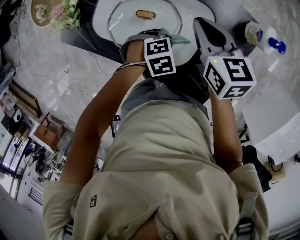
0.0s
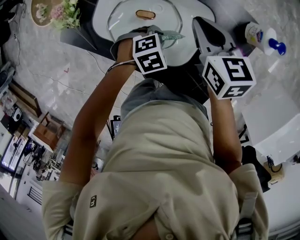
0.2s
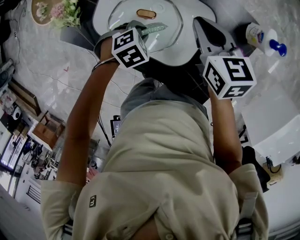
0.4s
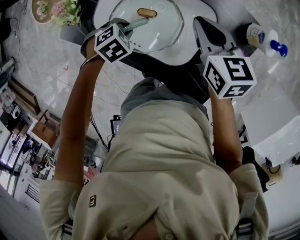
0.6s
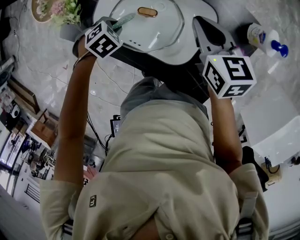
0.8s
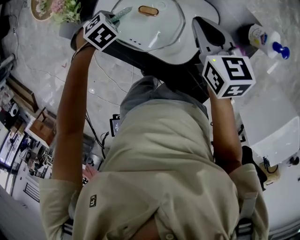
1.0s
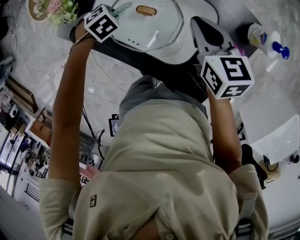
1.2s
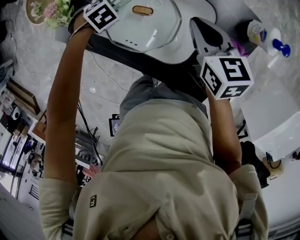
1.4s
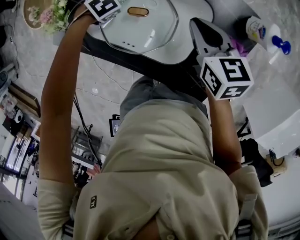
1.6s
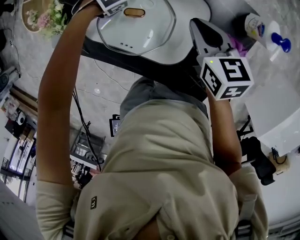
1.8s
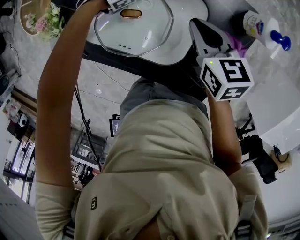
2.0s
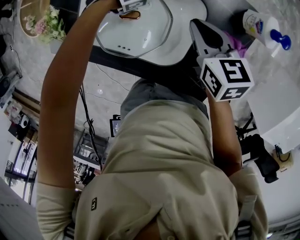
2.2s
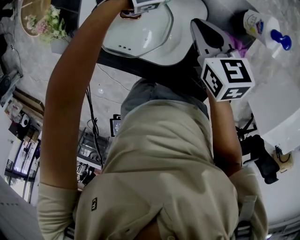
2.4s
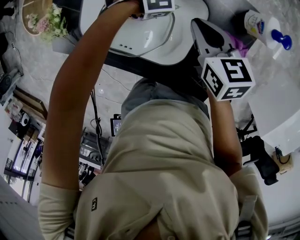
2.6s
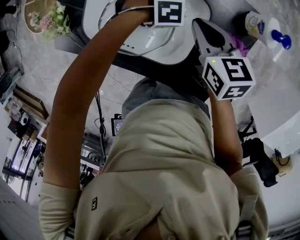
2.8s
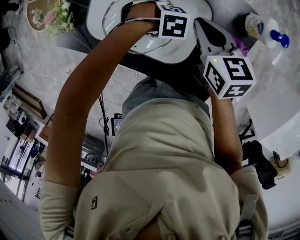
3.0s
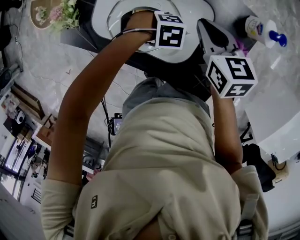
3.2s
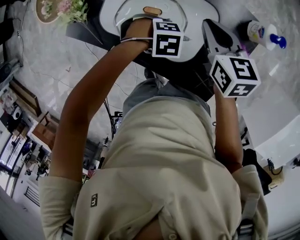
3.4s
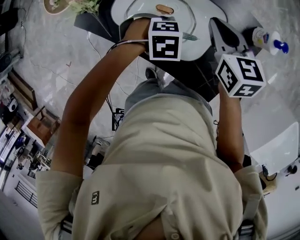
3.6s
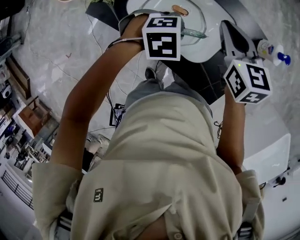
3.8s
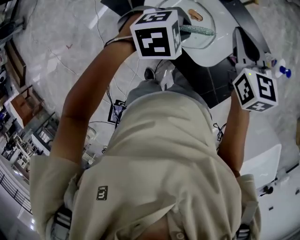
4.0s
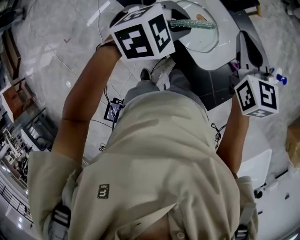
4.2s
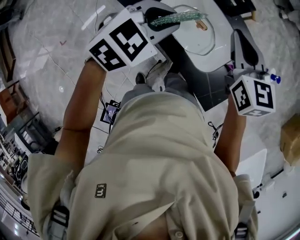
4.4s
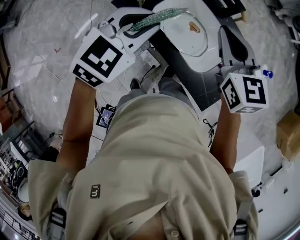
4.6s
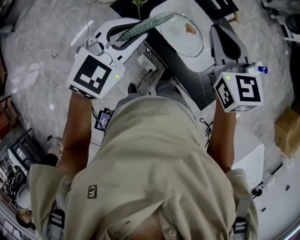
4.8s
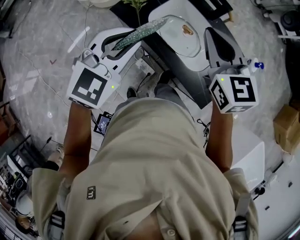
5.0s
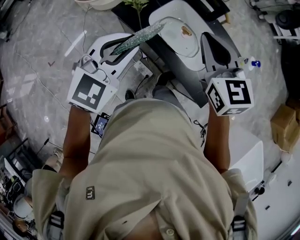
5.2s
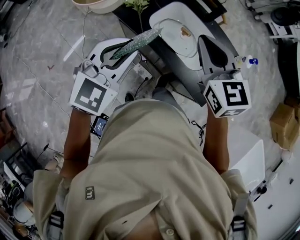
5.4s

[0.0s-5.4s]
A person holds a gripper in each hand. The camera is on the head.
0.0s to 1.4s: The left gripper shifts by roughly 25 cm.
1.4s to 2.8s: The left gripper shifts by approximately 20 cm, and turns by approximately 30 degrees.
2.8s to 4.0s: The left gripper heads upward, covering about 20 cm, and changes its angle by about 40 degrees; the right gripper shifts approximately 15 cm upward, and swivels about 20 degrees.
4.0s to 5.4s: The left gripper changes place by approximately 30 cm, and angles its fingers upward, by about 40 degrees; the right gripper moves about 20 cm.

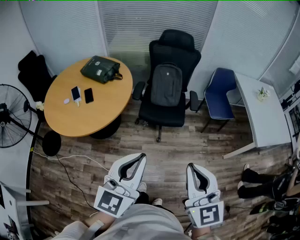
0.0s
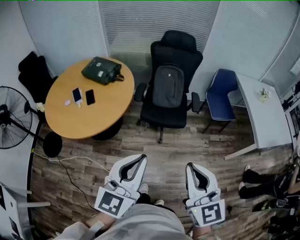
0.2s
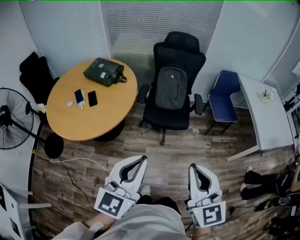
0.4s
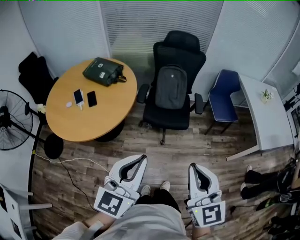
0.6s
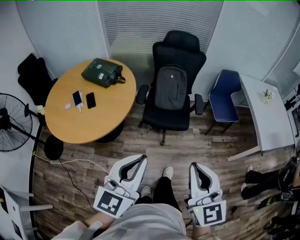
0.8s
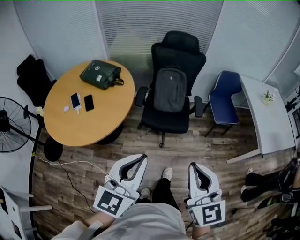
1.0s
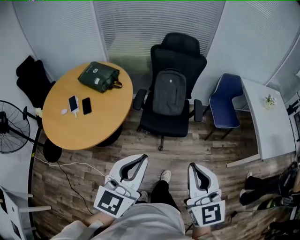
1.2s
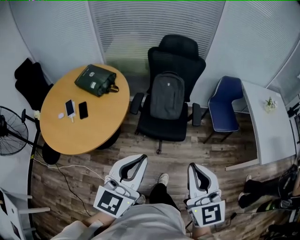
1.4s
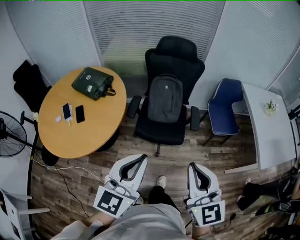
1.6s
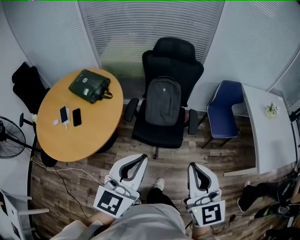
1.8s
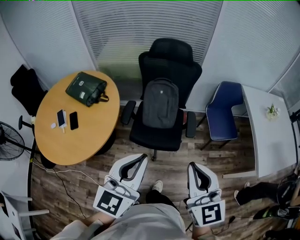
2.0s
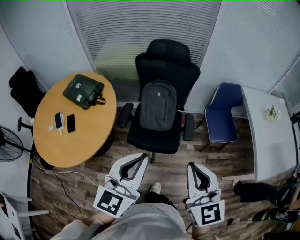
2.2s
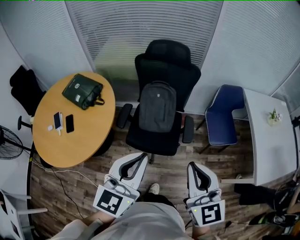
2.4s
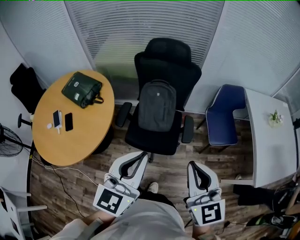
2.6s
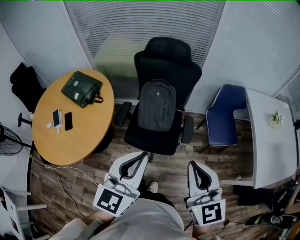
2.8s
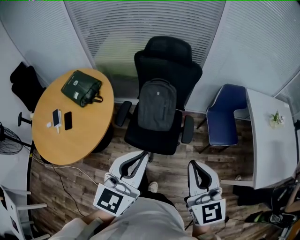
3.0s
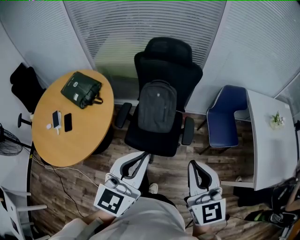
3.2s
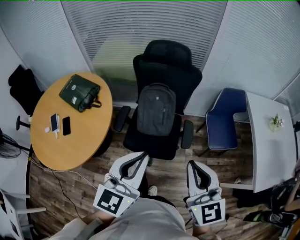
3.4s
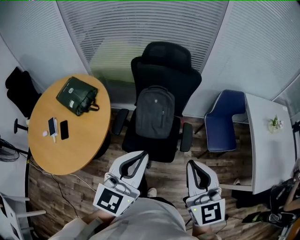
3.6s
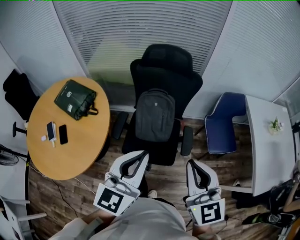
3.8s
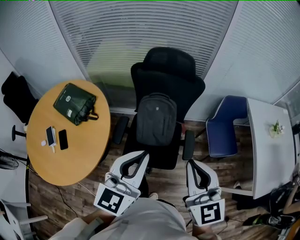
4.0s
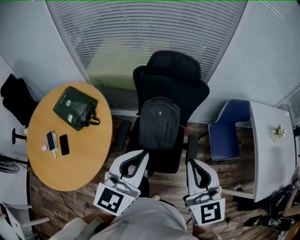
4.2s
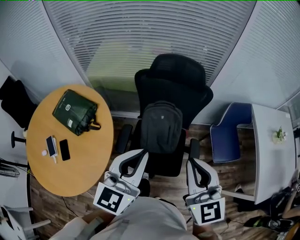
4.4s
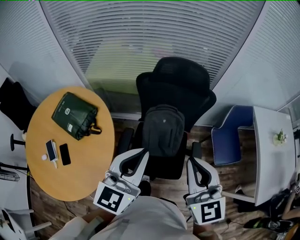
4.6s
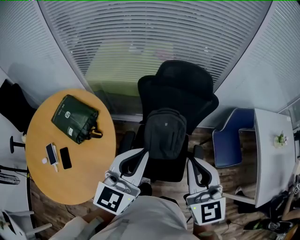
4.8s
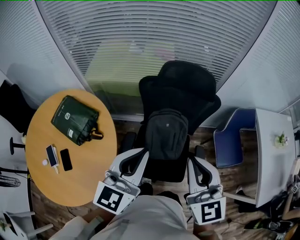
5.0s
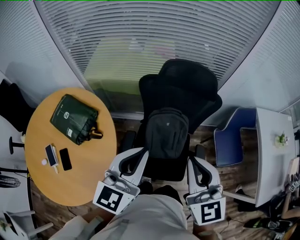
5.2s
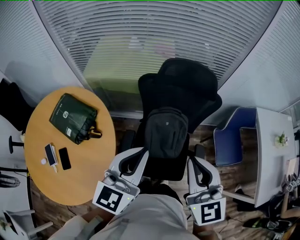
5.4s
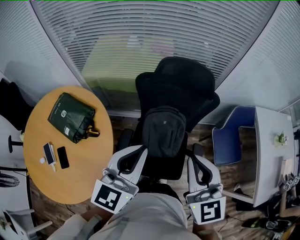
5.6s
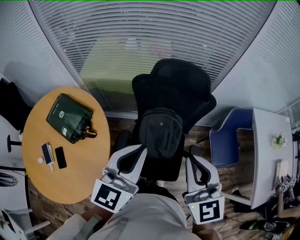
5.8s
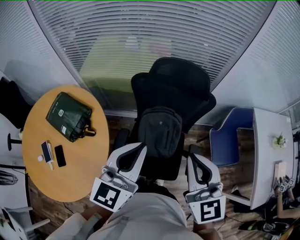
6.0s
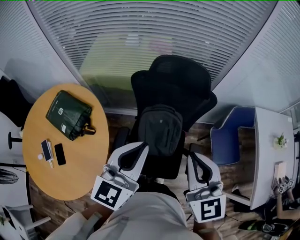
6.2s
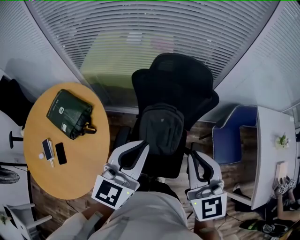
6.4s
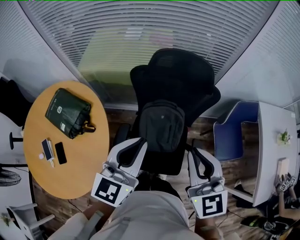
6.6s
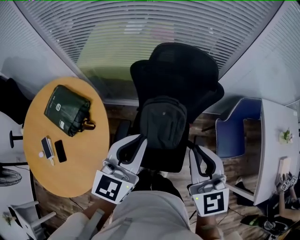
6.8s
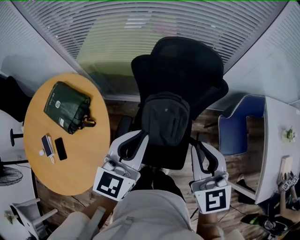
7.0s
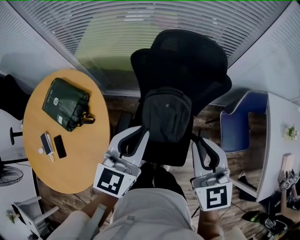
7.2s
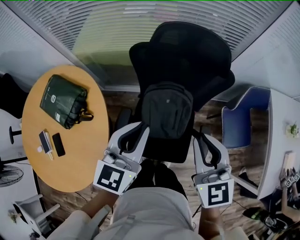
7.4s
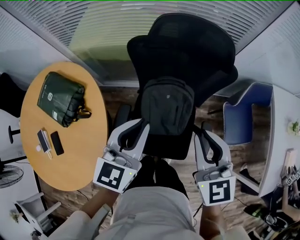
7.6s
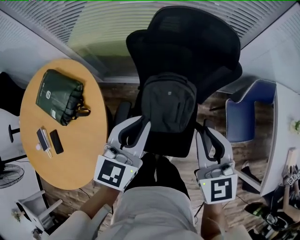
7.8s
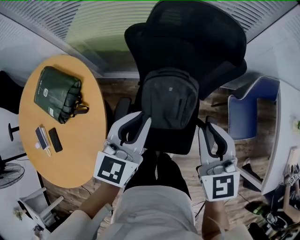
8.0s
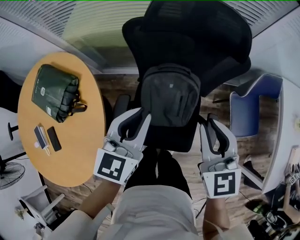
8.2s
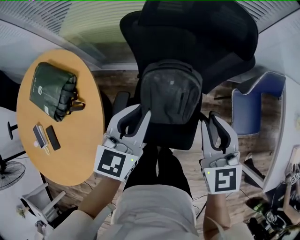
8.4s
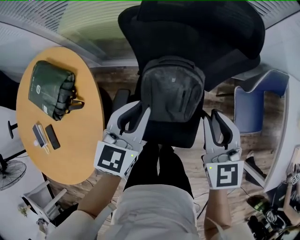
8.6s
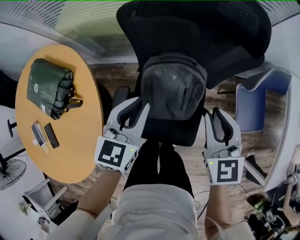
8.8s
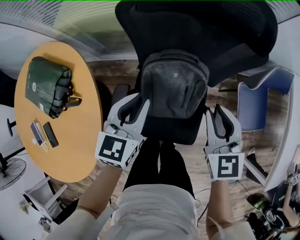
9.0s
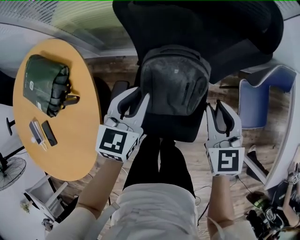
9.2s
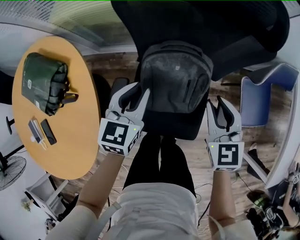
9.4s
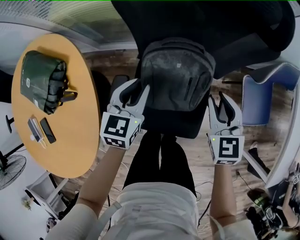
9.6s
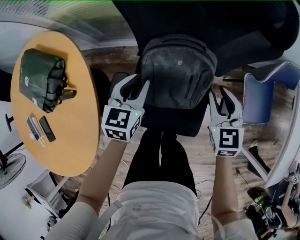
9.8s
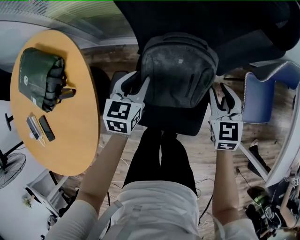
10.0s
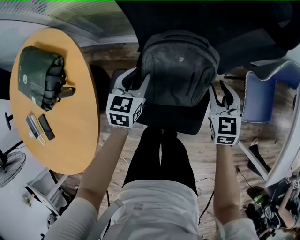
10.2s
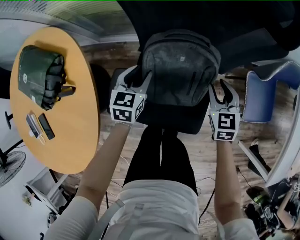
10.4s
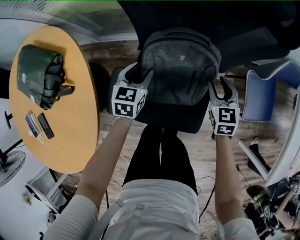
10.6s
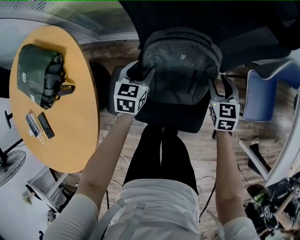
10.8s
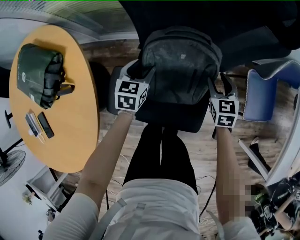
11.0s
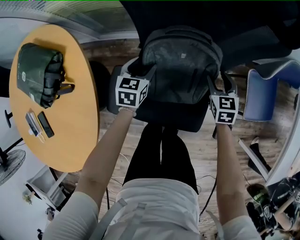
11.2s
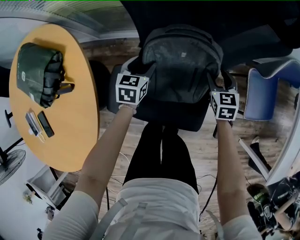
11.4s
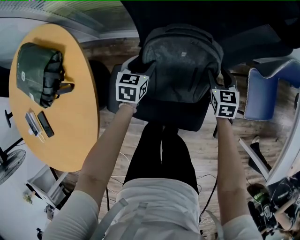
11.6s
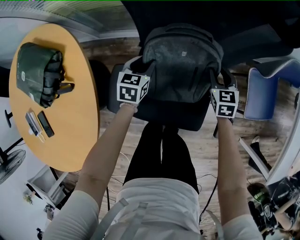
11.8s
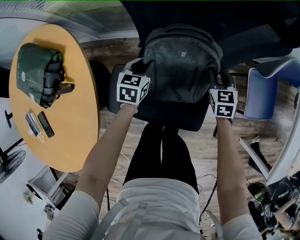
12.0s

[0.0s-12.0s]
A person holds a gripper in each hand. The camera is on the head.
0.0s to 1.6s: Both grippers move forward, roughly 20 cm.
1.6s to 3.0s: The grippers both shift forward and to the right by approximately 20 cm.
3.0s to 4.4s: Both grippers travel together forward and to the left, some 25 cm.
4.4s to 6.0s: Both grippers travel together forward, approximately 10 cm.
6.0s to 7.6s: Both grippers move downward and forward, some 15 cm.
7.6s to 9.0s: The right gripper moves downward and forward, some 15 cm. Meanwhile the left gripper shifts some 15 cm downward.
9.0s to 10.4s: Both grippers travel together downward, approximately 20 cm. The left gripper opens up.
10.4s to 12.0s: Both grippers move downward, approximately 5 cm.

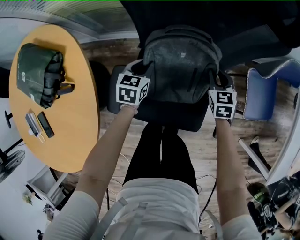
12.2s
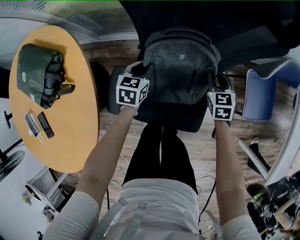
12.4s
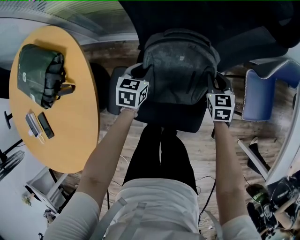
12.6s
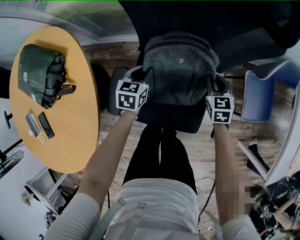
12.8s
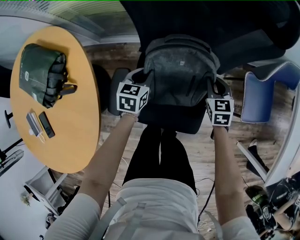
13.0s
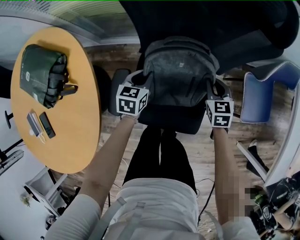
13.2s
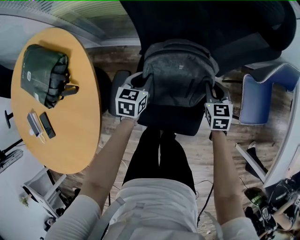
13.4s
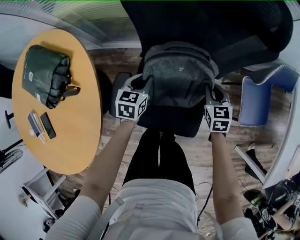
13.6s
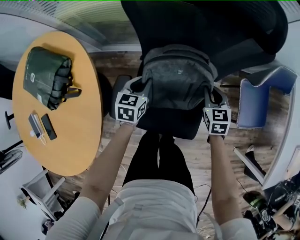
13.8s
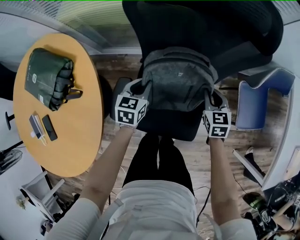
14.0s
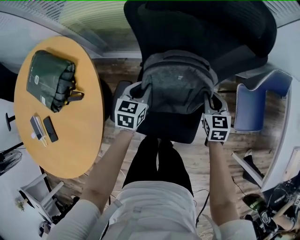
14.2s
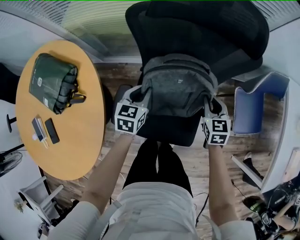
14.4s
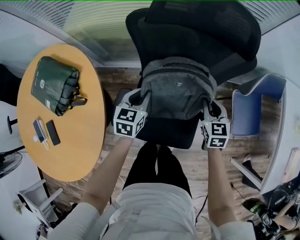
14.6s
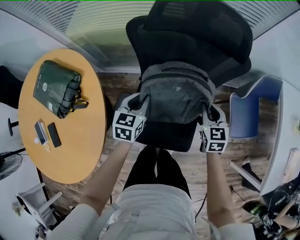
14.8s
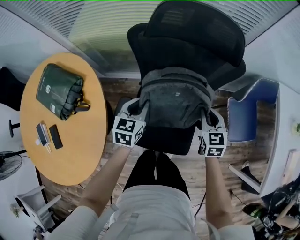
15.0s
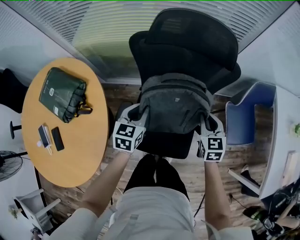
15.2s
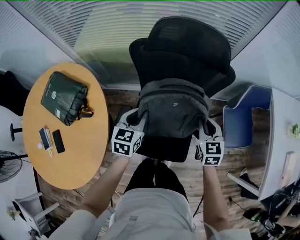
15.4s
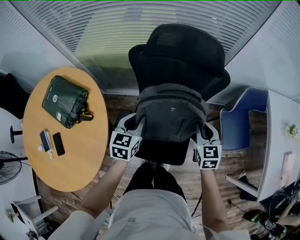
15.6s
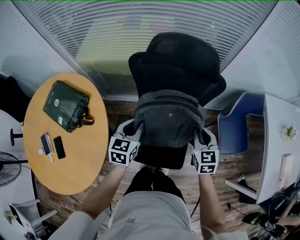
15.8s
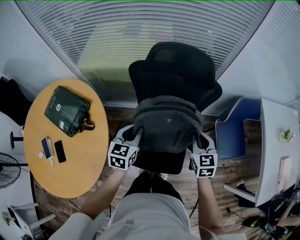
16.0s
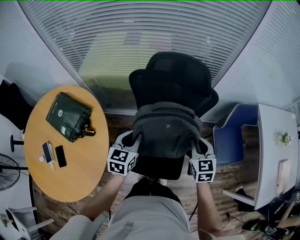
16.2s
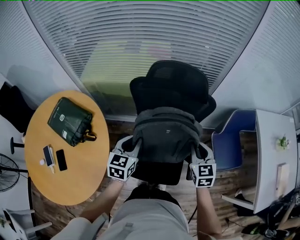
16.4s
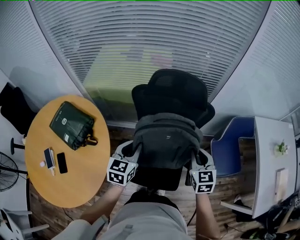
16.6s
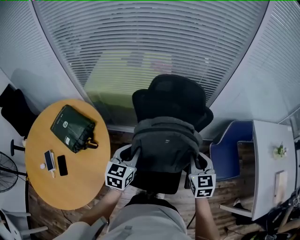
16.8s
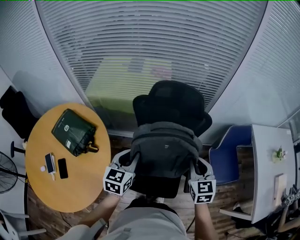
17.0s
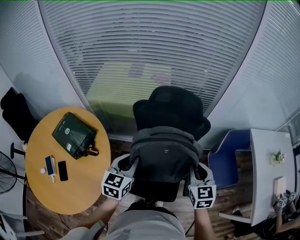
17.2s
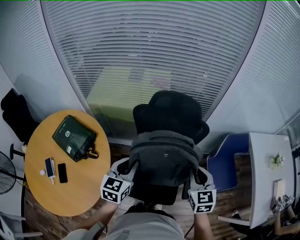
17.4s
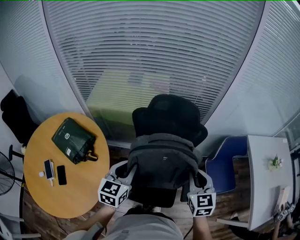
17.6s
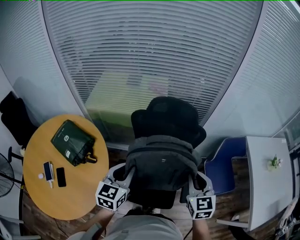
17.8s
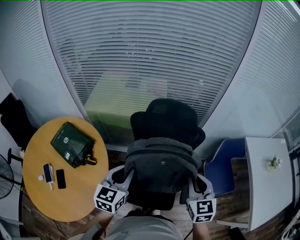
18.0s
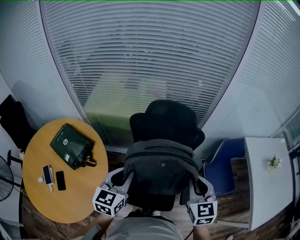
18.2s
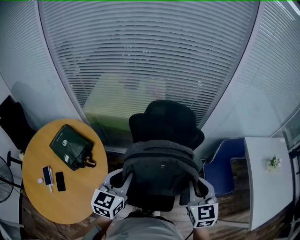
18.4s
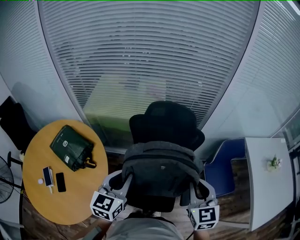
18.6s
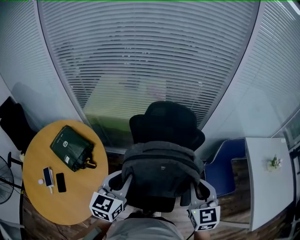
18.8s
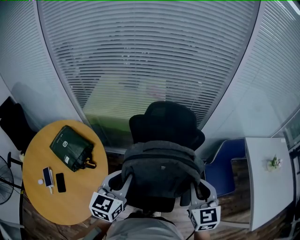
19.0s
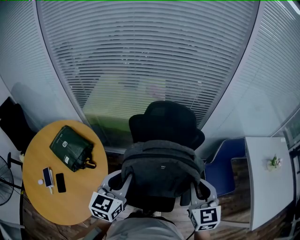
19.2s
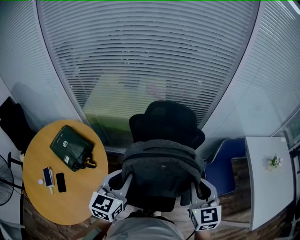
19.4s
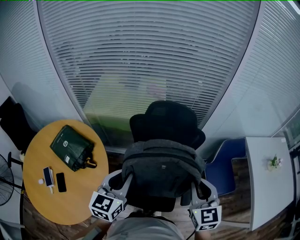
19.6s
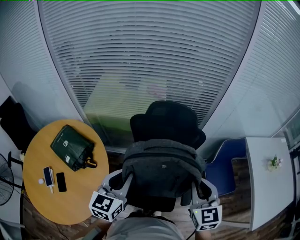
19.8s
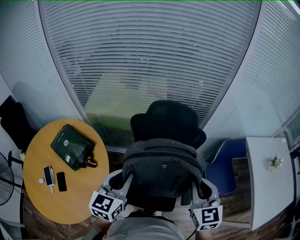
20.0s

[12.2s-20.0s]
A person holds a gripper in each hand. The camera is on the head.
12.2s to 13.8s: Both grippers move upward, approximately 5 cm.
13.8s to 15.4s: The two grippers go about 20 cm upward.
15.4s to 16.8s: The grippers both shift upward by about 15 cm.
16.8s to 18.4s: The left gripper moves upward, roughly 10 cm. The right gripper travels upward and backward by roughly 10 cm.
18.4s to 20.0s: The grippers stay close to where they were, moving slightly.
